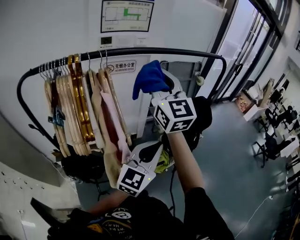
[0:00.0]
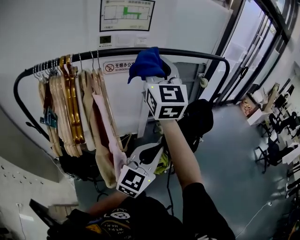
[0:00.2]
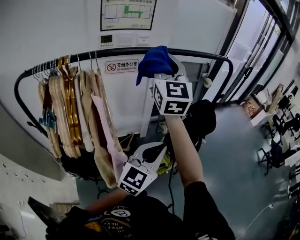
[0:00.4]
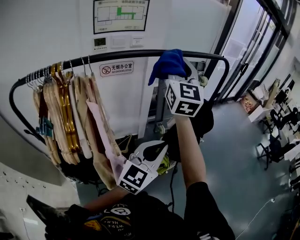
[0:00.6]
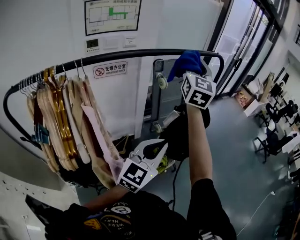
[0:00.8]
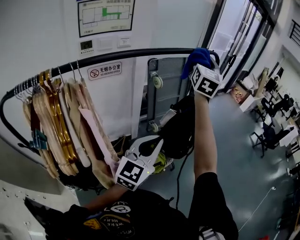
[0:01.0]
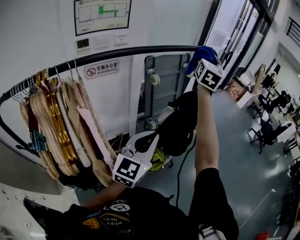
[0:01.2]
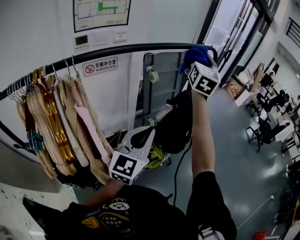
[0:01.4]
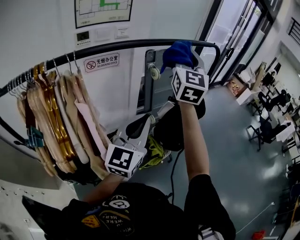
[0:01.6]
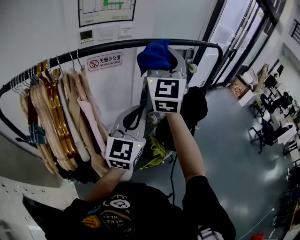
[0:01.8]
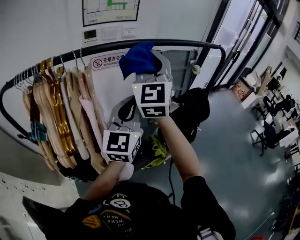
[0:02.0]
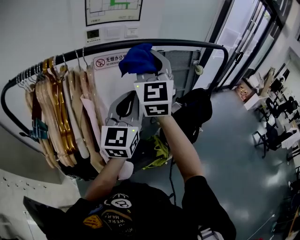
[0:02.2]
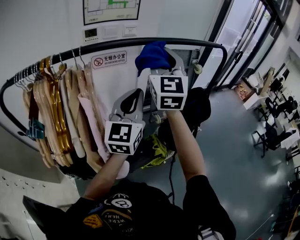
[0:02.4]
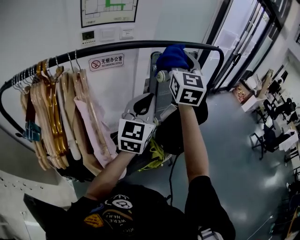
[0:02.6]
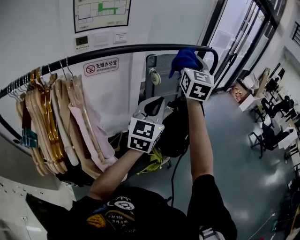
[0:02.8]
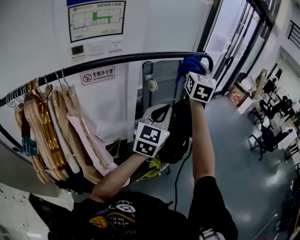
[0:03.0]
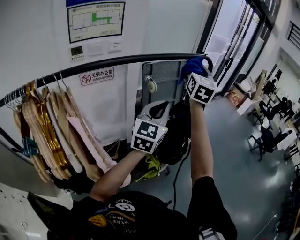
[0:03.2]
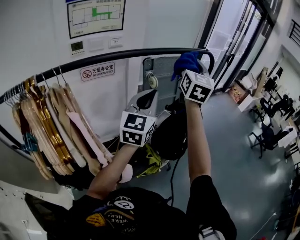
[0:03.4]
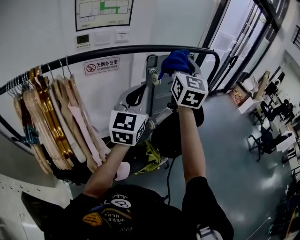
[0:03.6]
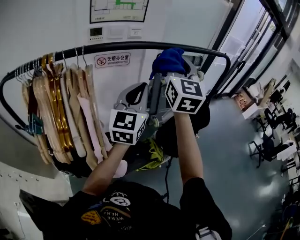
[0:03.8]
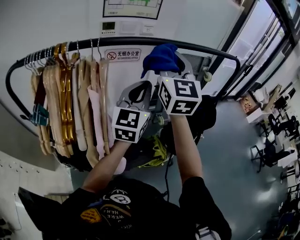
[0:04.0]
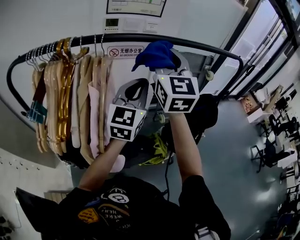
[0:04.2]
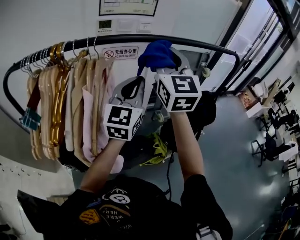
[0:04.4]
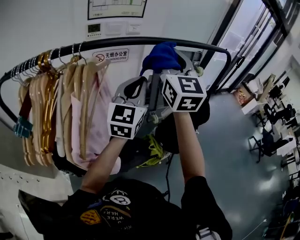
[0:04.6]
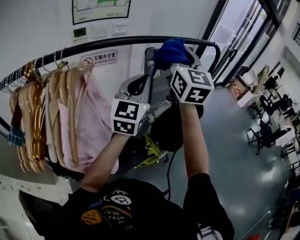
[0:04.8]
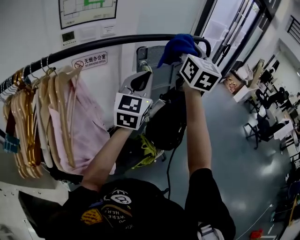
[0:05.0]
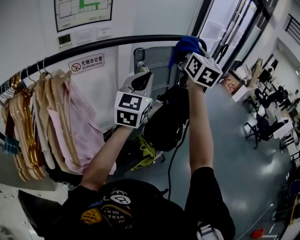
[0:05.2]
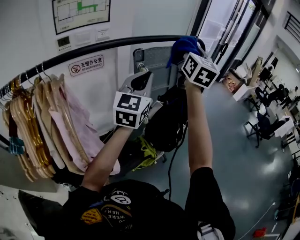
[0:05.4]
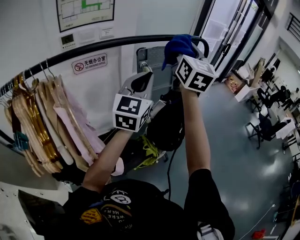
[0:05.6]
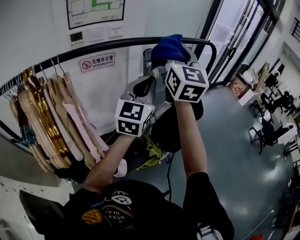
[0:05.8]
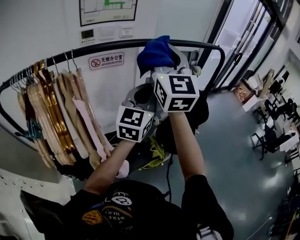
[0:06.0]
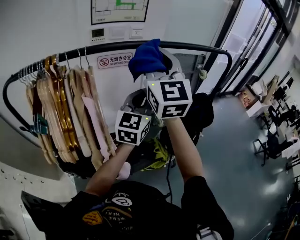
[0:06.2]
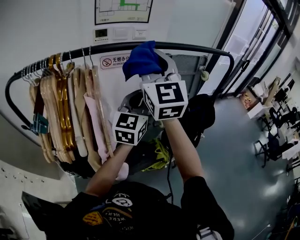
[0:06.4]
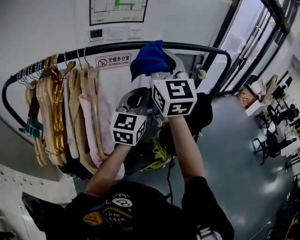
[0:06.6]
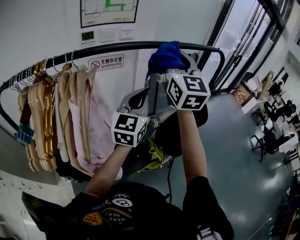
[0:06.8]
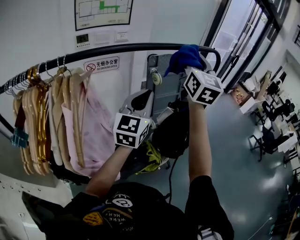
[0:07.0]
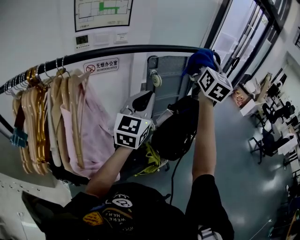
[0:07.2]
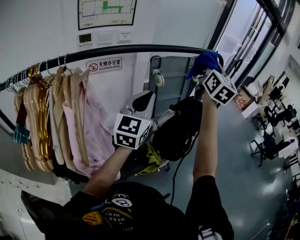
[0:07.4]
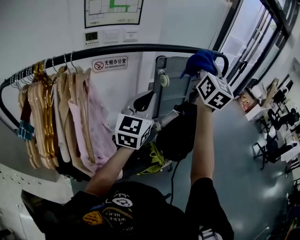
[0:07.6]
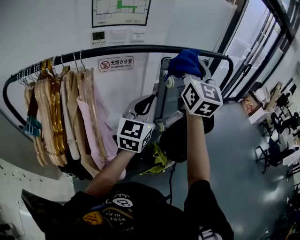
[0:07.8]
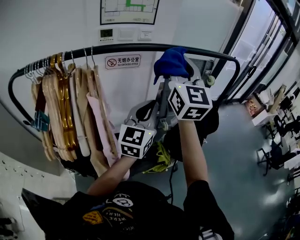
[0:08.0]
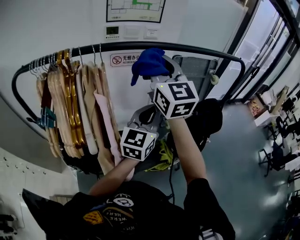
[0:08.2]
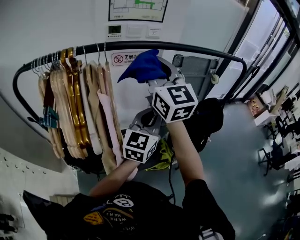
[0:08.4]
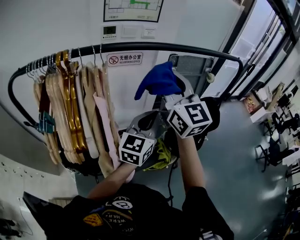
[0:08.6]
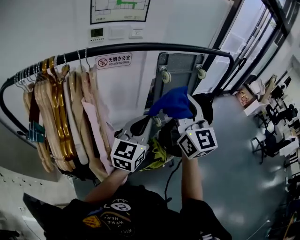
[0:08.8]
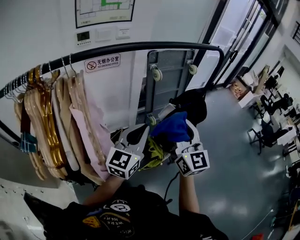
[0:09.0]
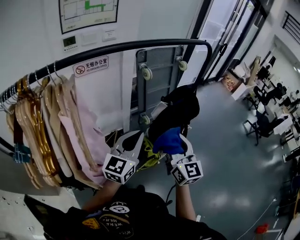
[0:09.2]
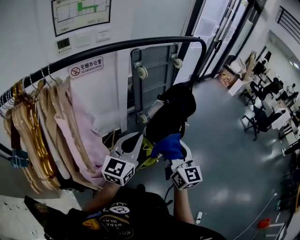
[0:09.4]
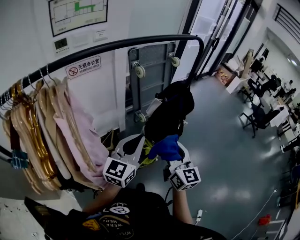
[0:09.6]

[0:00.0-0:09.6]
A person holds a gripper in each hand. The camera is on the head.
0:00.0 to 0:01.6: The right gripper swivels roughly 30 degrees, while the left gripper moves approximately 10 cm.
0:01.6 to 0:03.2: The left gripper is displaced forward and to the right by about 15 cm, while the right gripper goes some 15 cm to the right and forward.
0:03.2 to 0:04.8: The right gripper turns by some 20 degrees.
0:04.8 to 0:06.4: The left gripper goes about 5 cm to the left. The right gripper heads to the left and backward, covering some 20 cm.
0:06.4 to 0:08.0: The right gripper reaches some 30 cm to the right, then returns; the left gripper goes to the right and returns, about 10 cm each way.
0:08.0 to 0:09.6: The left gripper changes place by approximately 15 cm, and changes its angle by approximately 30 degrees, while the right gripper moves downward, approximately 25 cm, and rotates roughly 30 degrees.

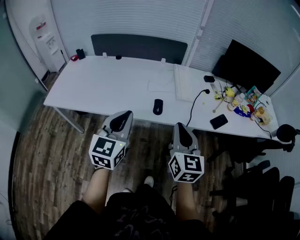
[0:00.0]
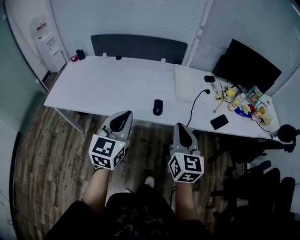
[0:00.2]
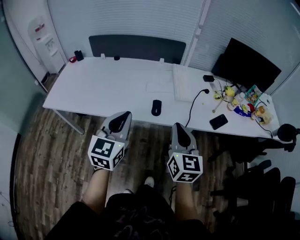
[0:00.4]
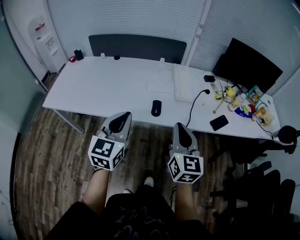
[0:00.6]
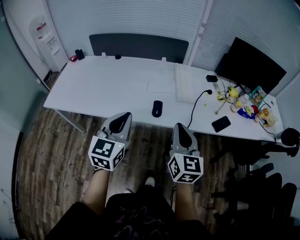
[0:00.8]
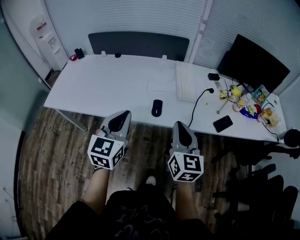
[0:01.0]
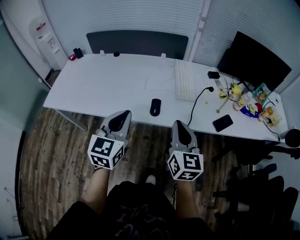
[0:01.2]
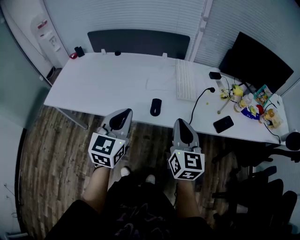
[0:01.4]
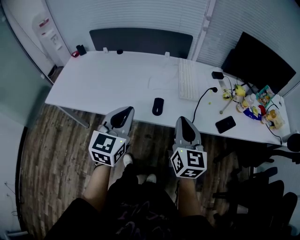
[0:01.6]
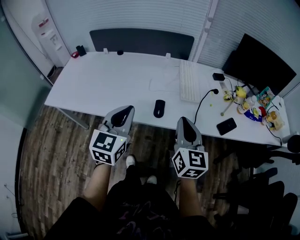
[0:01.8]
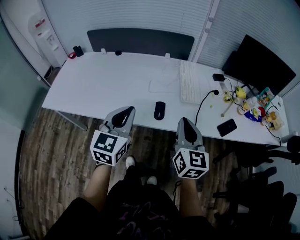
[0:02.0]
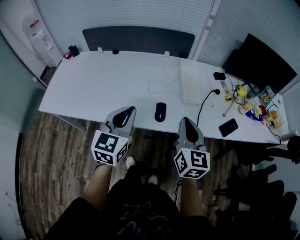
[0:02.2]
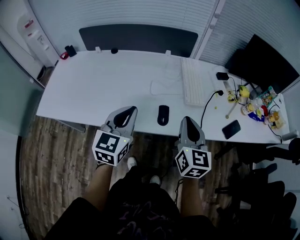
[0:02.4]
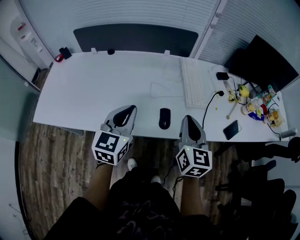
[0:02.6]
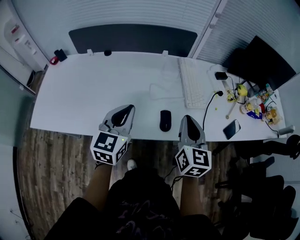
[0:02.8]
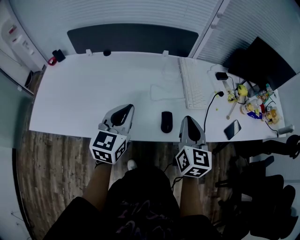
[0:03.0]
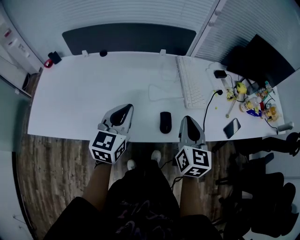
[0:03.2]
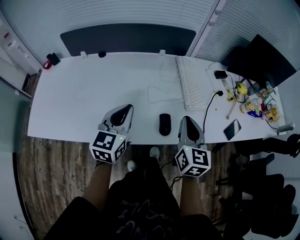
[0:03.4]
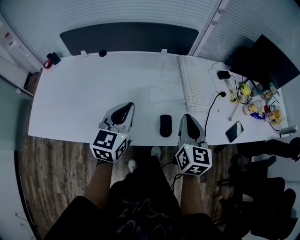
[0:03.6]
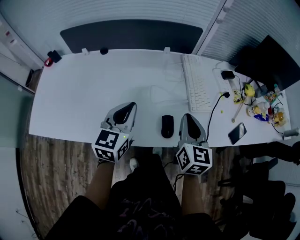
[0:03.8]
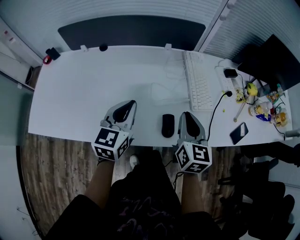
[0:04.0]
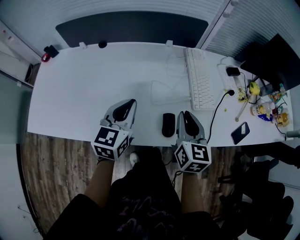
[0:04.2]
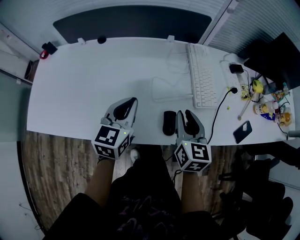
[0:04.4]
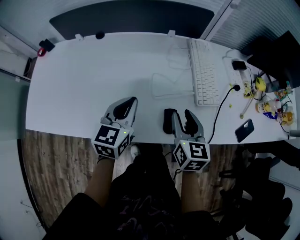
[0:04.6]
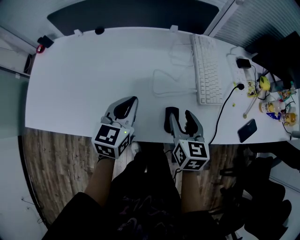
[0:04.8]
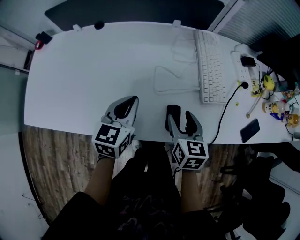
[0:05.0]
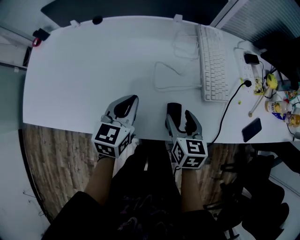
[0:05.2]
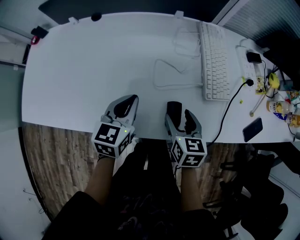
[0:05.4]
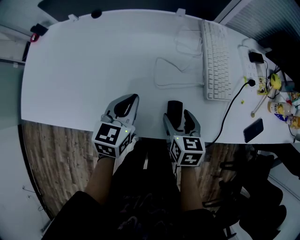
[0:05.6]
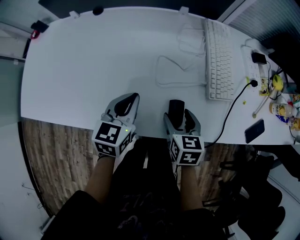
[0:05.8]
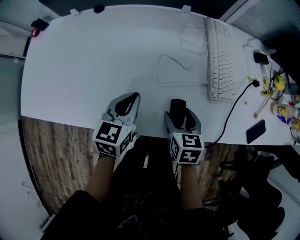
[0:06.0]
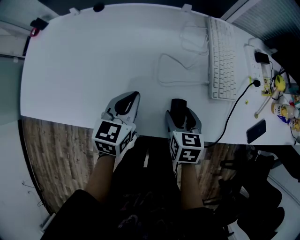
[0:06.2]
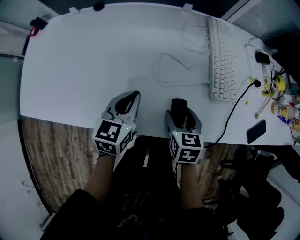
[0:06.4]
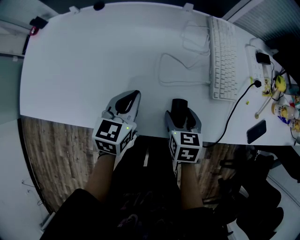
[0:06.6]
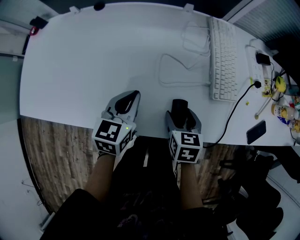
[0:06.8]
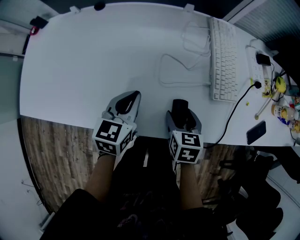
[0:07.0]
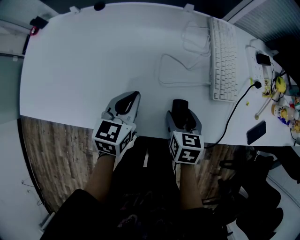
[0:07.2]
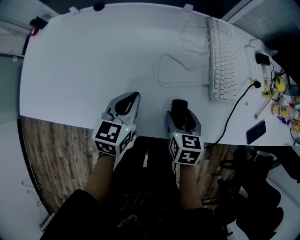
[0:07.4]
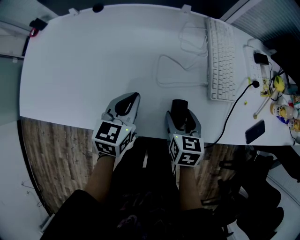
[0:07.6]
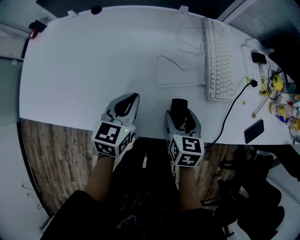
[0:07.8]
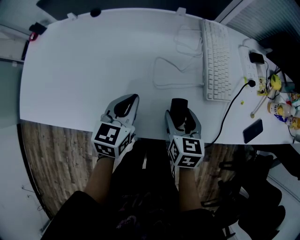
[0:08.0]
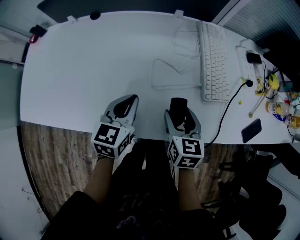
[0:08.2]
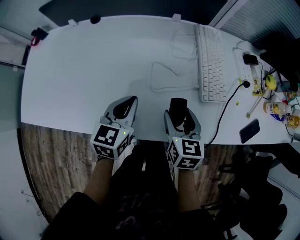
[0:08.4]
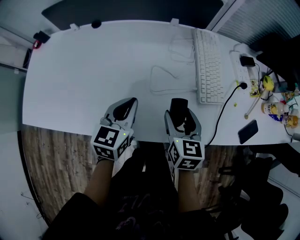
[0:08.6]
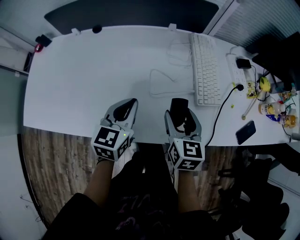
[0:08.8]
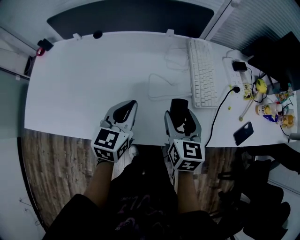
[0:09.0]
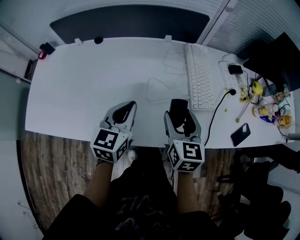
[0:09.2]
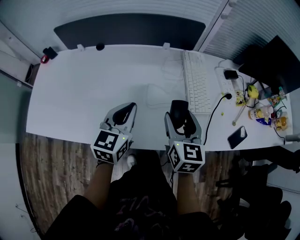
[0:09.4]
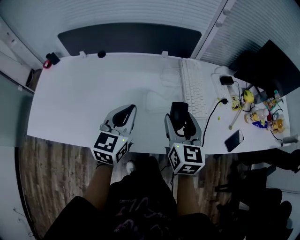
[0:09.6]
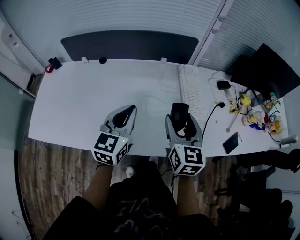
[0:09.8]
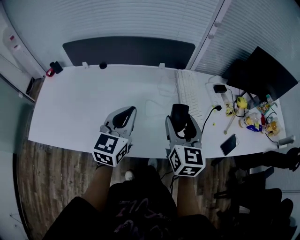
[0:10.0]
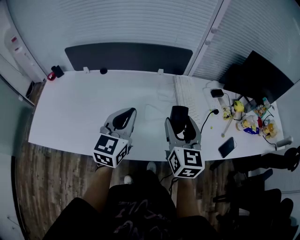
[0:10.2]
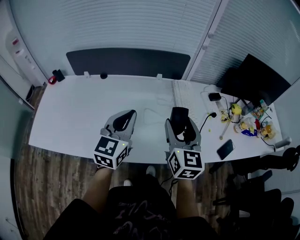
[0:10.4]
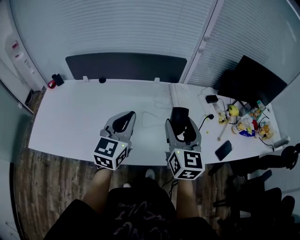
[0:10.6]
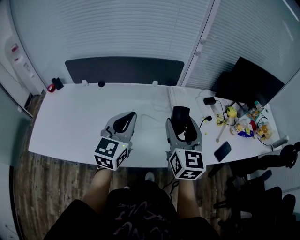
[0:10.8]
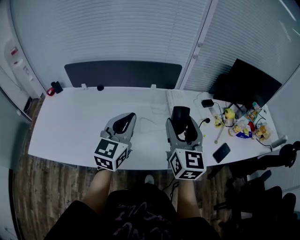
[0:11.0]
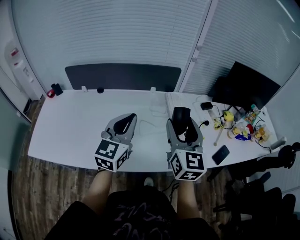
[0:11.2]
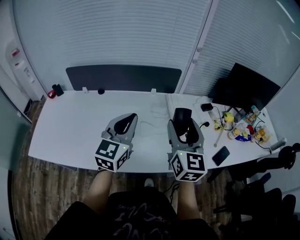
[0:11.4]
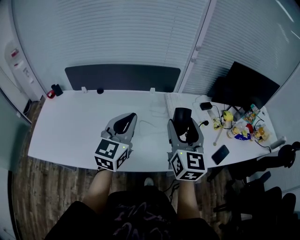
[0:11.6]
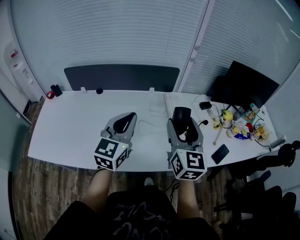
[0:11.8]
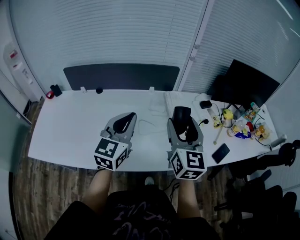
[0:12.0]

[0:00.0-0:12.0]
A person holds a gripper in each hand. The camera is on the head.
0:00.0 to 0:01.6: Both grippers travel together forward, about 10 cm.
0:01.6 to 0:03.0: The two grippers go roughly 20 cm forward and to the left.
0:03.0 to 0:04.4: The grippers both shift forward and downward by about 10 cm.
0:04.4 to 0:06.0: Both grippers travel together downward, approximately 15 cm. The right gripper changes its angle by approximately 30 degrees, and opens up.
0:06.0 to 0:07.6: Neither gripper changes place.
0:07.6 to 0:09.0: The right gripper goes roughly 10 cm upward. The left gripper moves upward, about 10 cm.
0:09.0 to 0:10.4: Both grippers travel together upward, about 15 cm. The right gripper turns by roughly 20 degrees.
0:10.4 to 0:12.0: The left gripper shifts by about 5 cm. The right gripper is displaced upward by about 5 cm.

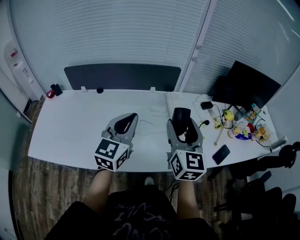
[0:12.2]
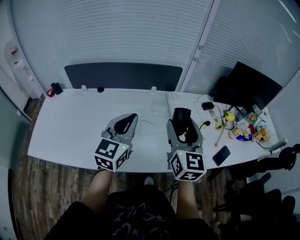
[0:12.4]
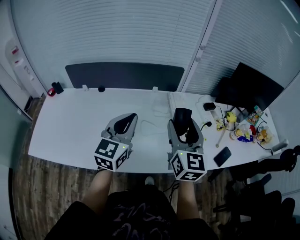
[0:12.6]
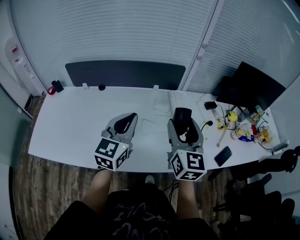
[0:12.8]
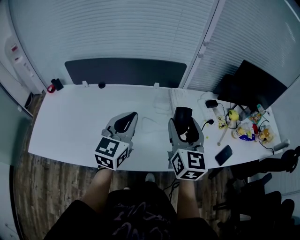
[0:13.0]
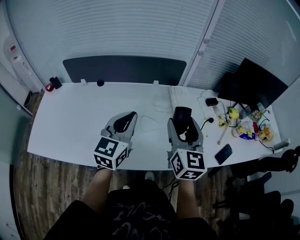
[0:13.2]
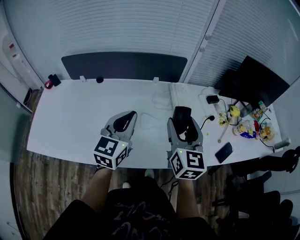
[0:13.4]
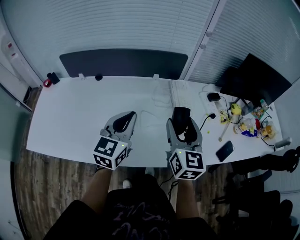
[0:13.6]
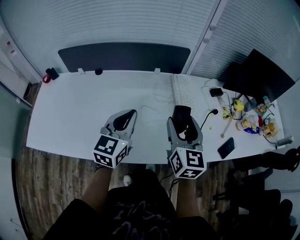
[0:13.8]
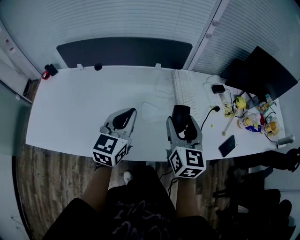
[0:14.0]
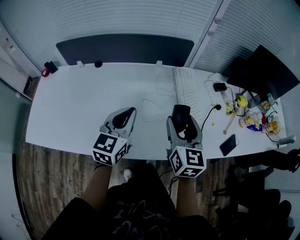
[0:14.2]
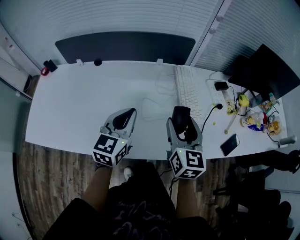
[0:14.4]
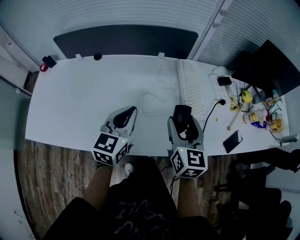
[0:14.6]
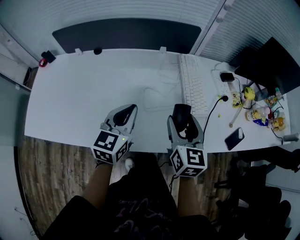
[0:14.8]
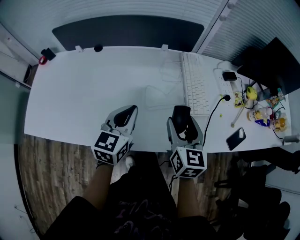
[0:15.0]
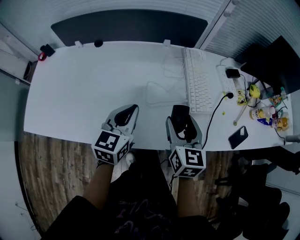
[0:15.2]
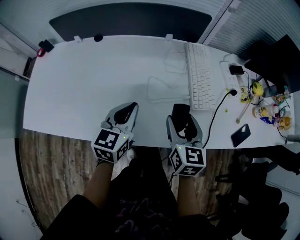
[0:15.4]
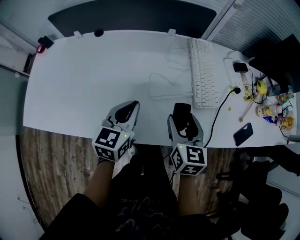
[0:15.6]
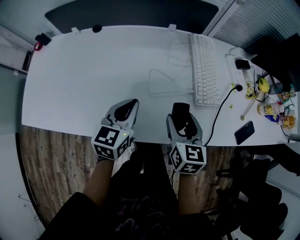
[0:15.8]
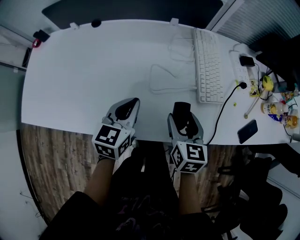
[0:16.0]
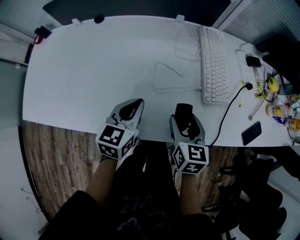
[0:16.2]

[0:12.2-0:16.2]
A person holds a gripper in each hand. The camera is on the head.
0:12.2 to 0:13.6: Both grippers travel together downward, approximately 5 cm.
0:13.6 to 0:14.8: The grippers both shift downward by some 10 cm.
0:14.8 to 0:16.2: Both grippers move downward, some 15 cm.
